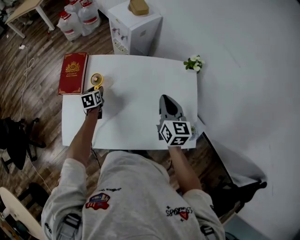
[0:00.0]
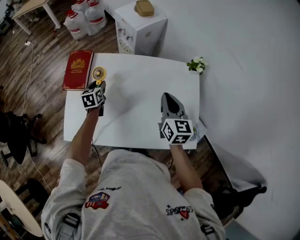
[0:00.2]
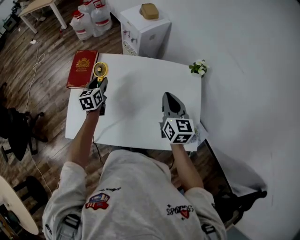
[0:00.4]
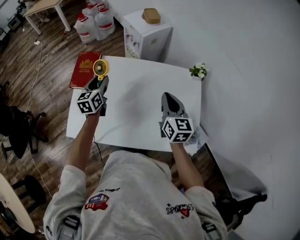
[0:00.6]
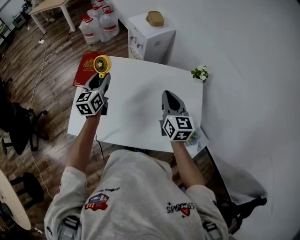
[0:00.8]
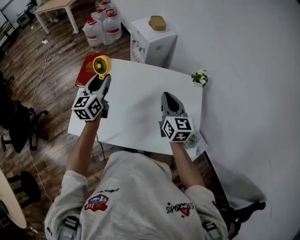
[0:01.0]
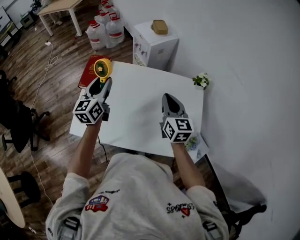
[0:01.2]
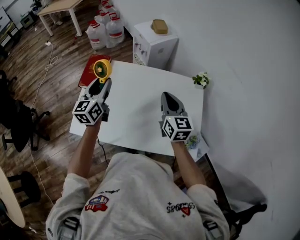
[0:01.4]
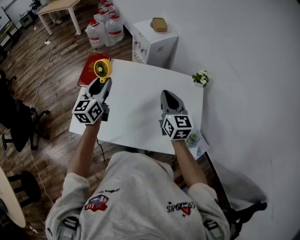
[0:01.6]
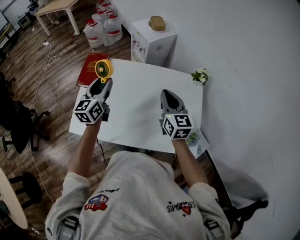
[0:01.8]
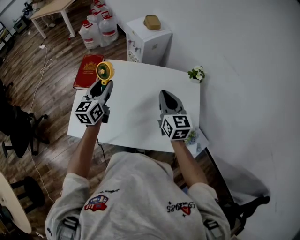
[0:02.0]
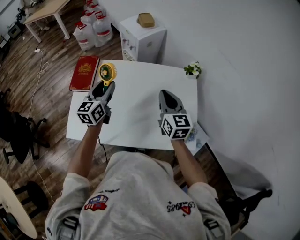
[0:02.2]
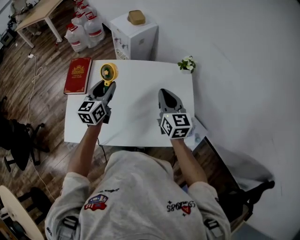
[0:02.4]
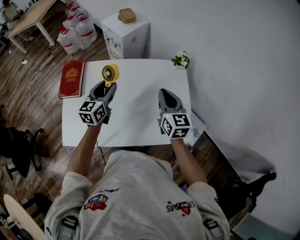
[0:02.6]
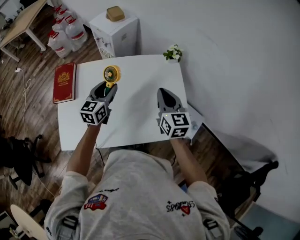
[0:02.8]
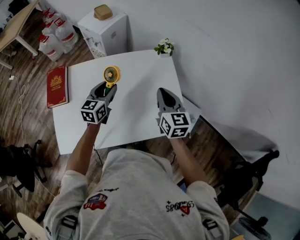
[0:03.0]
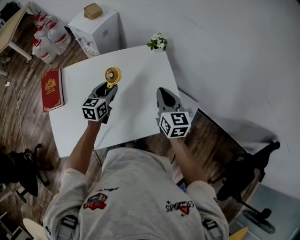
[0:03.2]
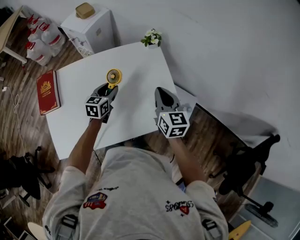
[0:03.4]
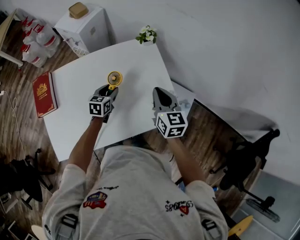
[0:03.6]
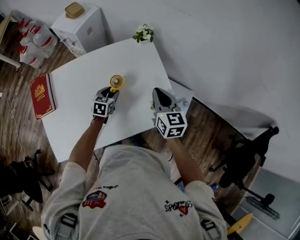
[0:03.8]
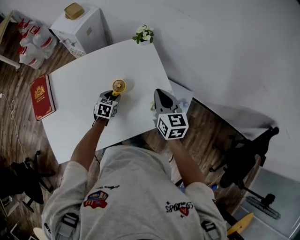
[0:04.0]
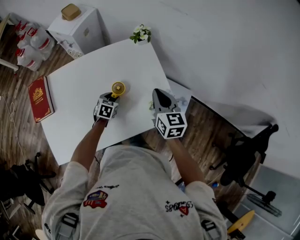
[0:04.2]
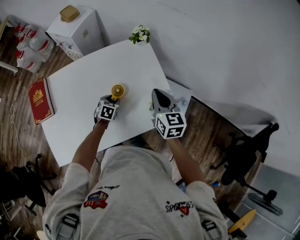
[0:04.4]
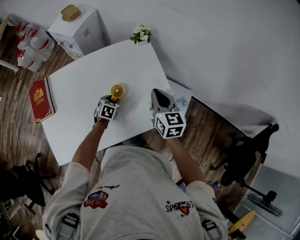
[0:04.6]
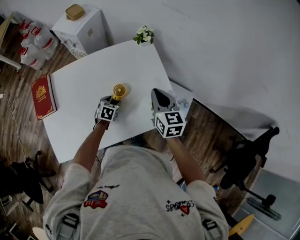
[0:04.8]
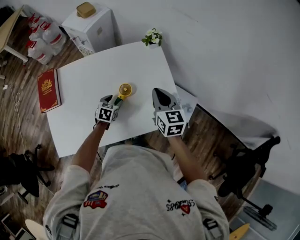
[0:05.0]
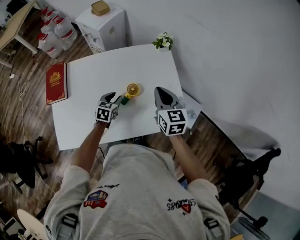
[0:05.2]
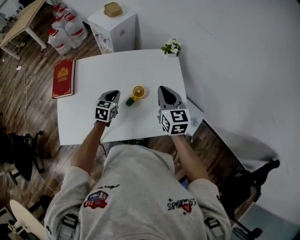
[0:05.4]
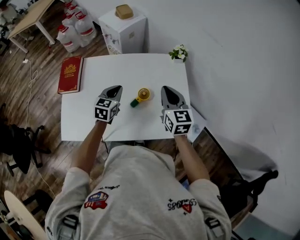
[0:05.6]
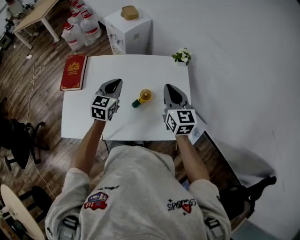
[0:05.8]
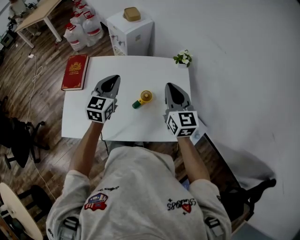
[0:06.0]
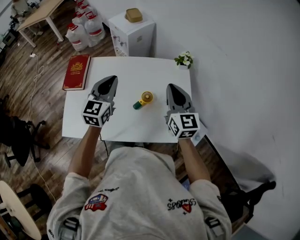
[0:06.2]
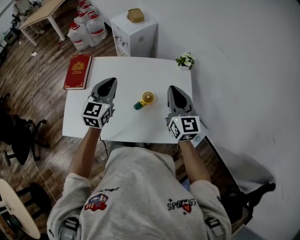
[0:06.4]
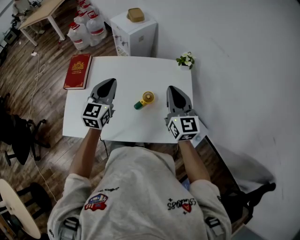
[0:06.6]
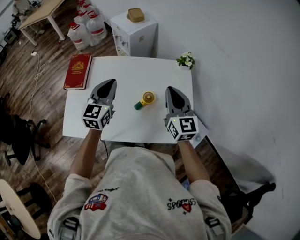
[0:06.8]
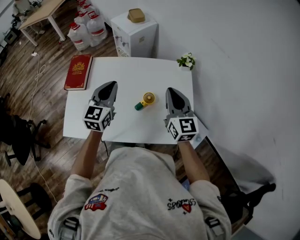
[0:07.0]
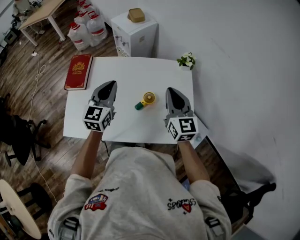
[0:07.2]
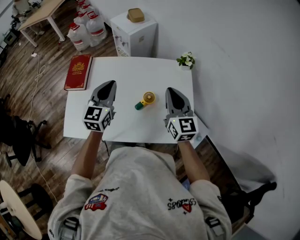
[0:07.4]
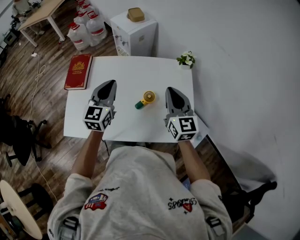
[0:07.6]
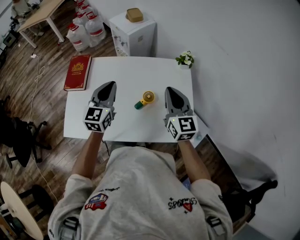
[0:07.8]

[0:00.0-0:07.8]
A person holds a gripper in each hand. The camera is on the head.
0:00.0 to 0:01.6: The right gripper travels upward and to the left by approximately 10 cm; the left gripper is displaced upward by approximately 30 cm, and tilts its fingers about 50 degrees upward.
0:01.6 to 0:03.2: The left gripper shifts by approximately 30 cm, and changes its angle by approximately 40 degrees. The right gripper shifts by roughly 20 cm, and swivels some 30 degrees.
0:03.2 to 0:04.6: The left gripper goes about 20 cm downward and to the right, and points its fingers some 30 degrees further downward; the right gripper ends up about 5 cm from where it was.
0:04.6 to 0:06.2: The left gripper goes roughly 40 cm upward and to the left, angles its fingers upward, by approximately 50 degrees, and closes its fingers, while the right gripper shifts roughly 15 cm upward and to the left, and swivels about 30 degrees.
0:06.2 to 0:07.8: The grippers make only small movements.

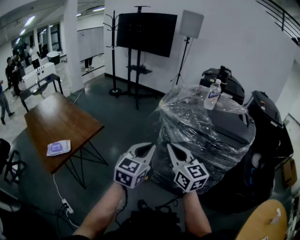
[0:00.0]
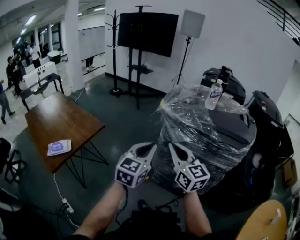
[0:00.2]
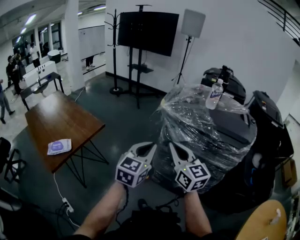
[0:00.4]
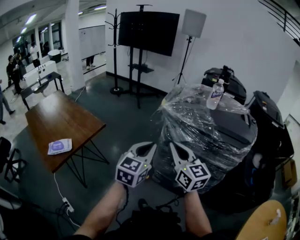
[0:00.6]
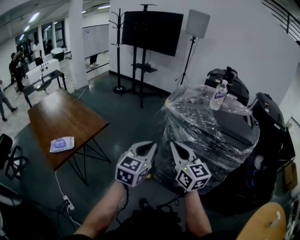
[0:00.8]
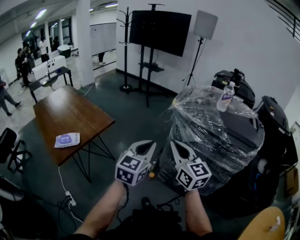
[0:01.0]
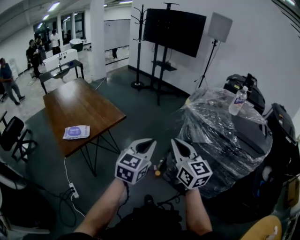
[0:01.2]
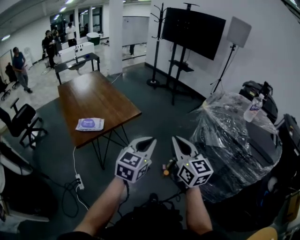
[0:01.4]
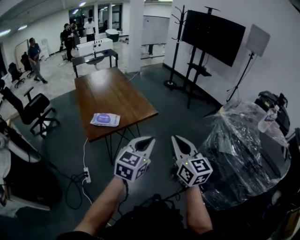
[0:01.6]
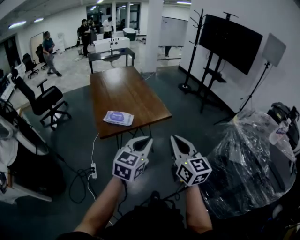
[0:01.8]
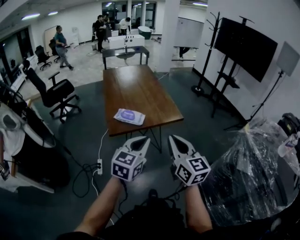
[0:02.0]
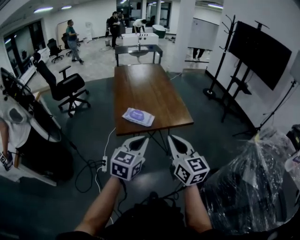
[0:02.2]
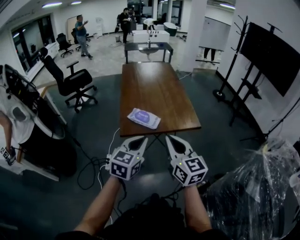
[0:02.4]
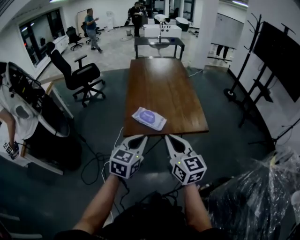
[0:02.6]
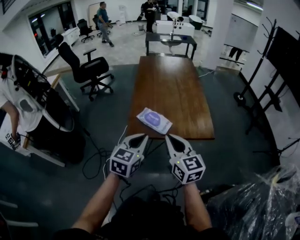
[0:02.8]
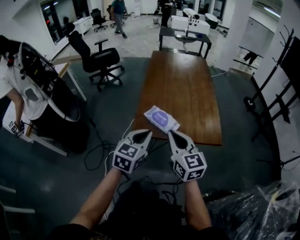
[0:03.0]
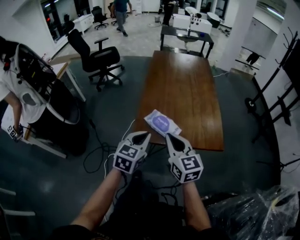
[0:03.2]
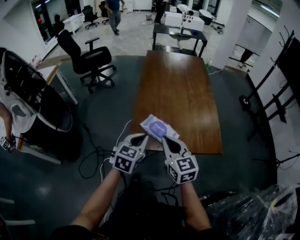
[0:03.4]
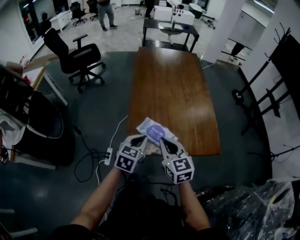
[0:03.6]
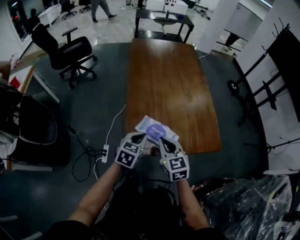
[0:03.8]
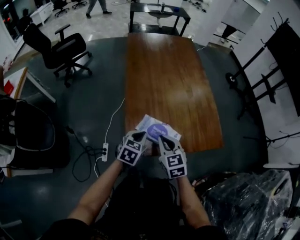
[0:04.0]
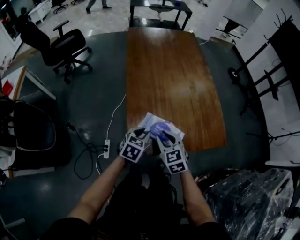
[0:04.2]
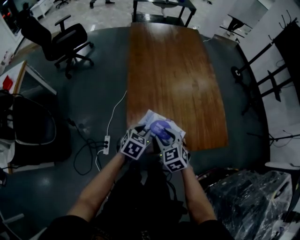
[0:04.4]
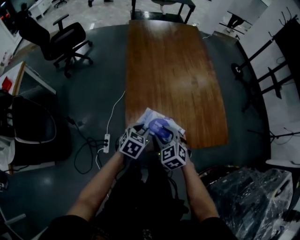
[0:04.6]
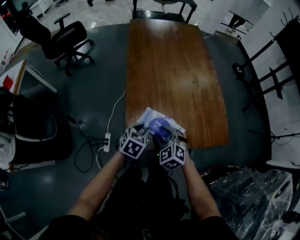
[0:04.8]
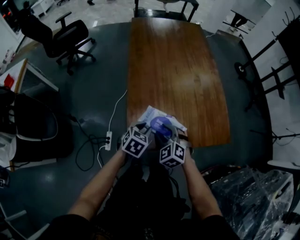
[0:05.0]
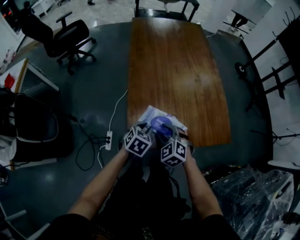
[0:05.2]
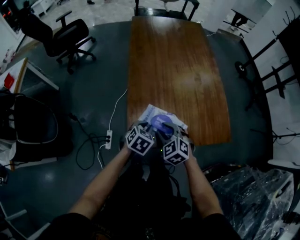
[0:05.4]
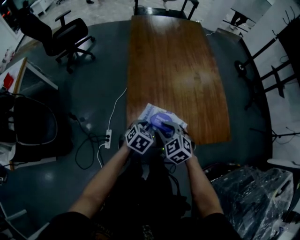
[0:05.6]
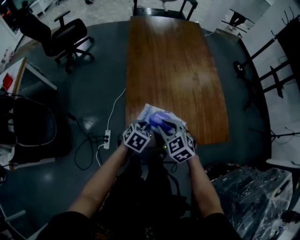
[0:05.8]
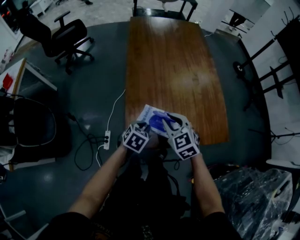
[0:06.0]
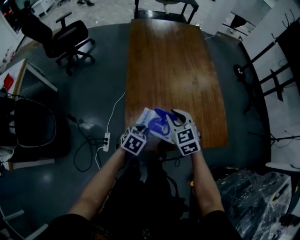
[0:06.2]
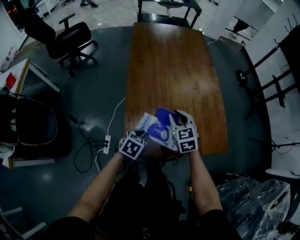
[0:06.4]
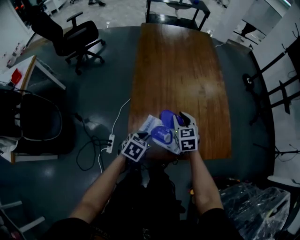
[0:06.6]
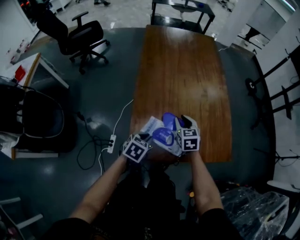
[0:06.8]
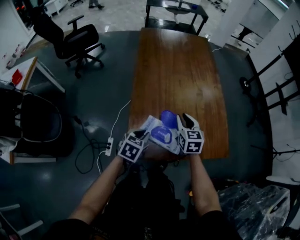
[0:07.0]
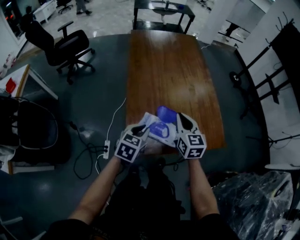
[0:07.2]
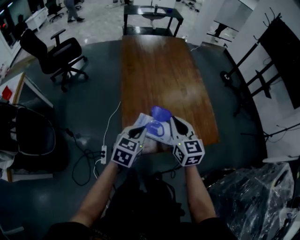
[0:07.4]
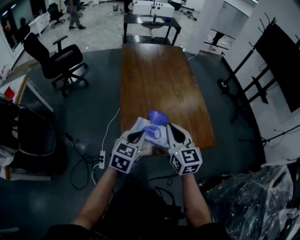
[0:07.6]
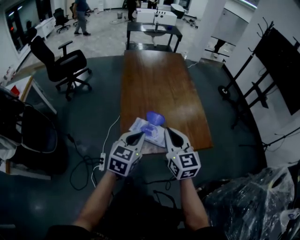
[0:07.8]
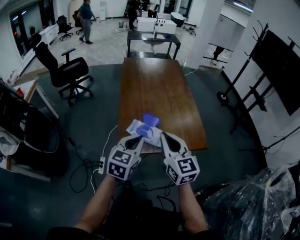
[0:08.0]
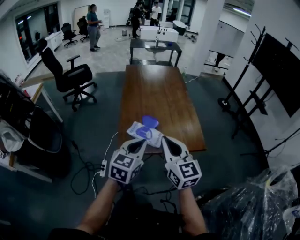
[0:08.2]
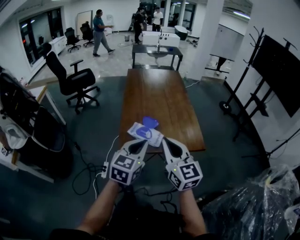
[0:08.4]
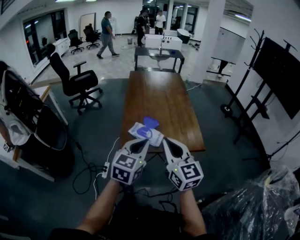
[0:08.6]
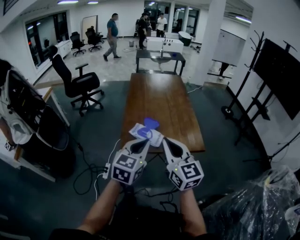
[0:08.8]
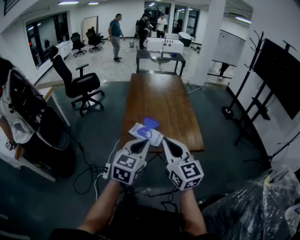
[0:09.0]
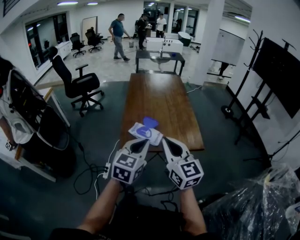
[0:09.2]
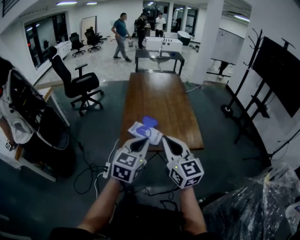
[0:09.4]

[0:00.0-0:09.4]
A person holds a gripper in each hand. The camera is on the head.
0:00.0 to 0:01.6: The right gripper ends up approximately 20 cm from where it was, and changes its angle by approximately 20 degrees, while the left gripper ends up approximately 25 cm from where it was, and turns by roughly 30 degrees.
0:01.6 to 0:03.2: The left gripper changes place by approximately 35 cm, and swivels approximately 40 degrees. Meanwhile the right gripper moves some 40 cm, and turns by some 40 degrees.
0:03.2 to 0:04.8: Both grippers move downward and forward, about 25 cm. The left gripper rotates some 30 degrees, and opens up. Meanwhile the right gripper tilts its fingers some 30 degrees downward, and opens.
0:04.8 to 0:06.2: The right gripper moves forward and upward, approximately 10 cm, and closes up.
0:06.2 to 0:07.8: The right gripper moves upward and backward, some 20 cm, and turns by about 30 degrees; the left gripper is displaced upward by roughly 20 cm, and tips its fingers upward by some 30 degrees.
0:07.8 to 0:09.4: The right gripper moves backward and upward, some 20 cm, while the left gripper is displaced backward, upward and to the right by about 20 cm.

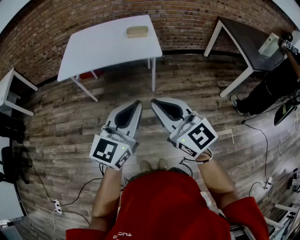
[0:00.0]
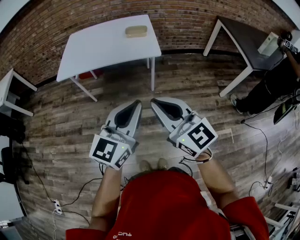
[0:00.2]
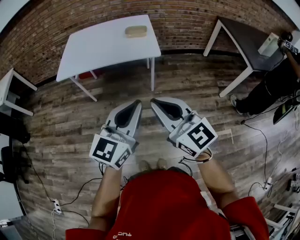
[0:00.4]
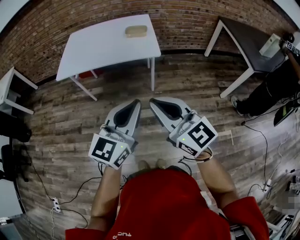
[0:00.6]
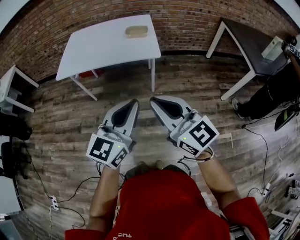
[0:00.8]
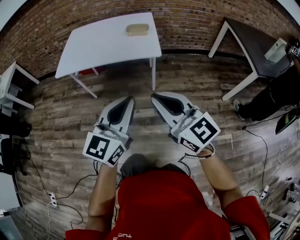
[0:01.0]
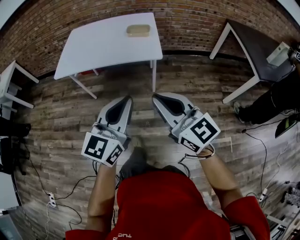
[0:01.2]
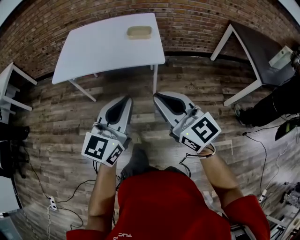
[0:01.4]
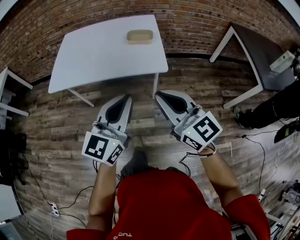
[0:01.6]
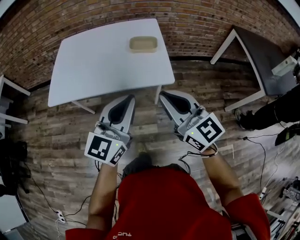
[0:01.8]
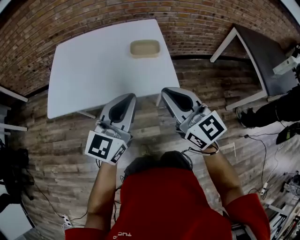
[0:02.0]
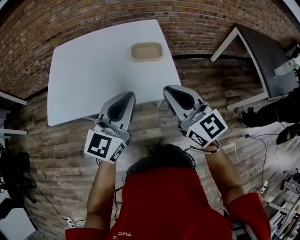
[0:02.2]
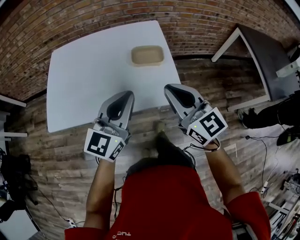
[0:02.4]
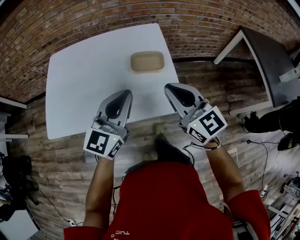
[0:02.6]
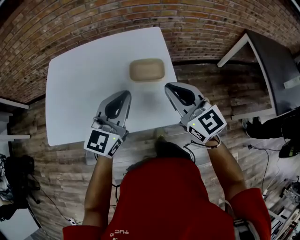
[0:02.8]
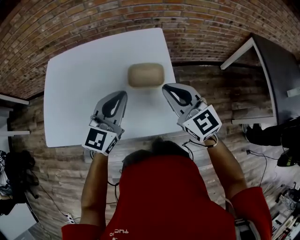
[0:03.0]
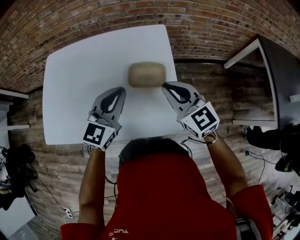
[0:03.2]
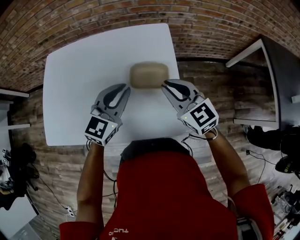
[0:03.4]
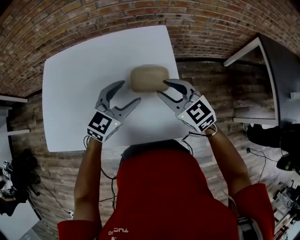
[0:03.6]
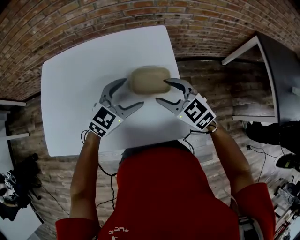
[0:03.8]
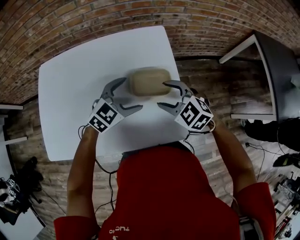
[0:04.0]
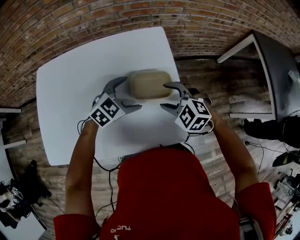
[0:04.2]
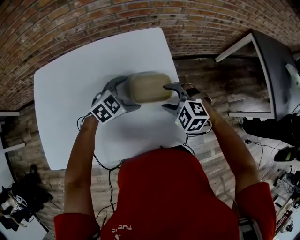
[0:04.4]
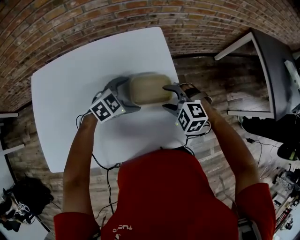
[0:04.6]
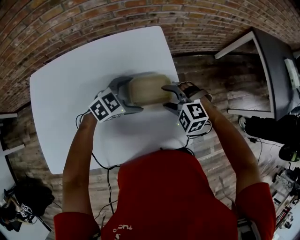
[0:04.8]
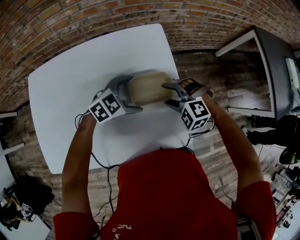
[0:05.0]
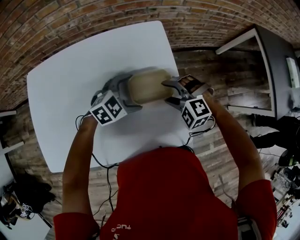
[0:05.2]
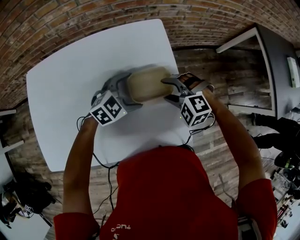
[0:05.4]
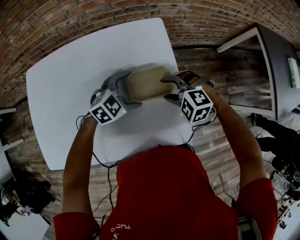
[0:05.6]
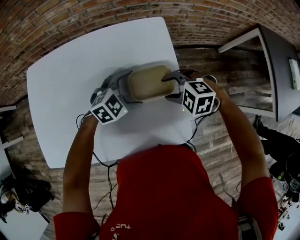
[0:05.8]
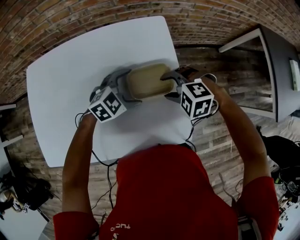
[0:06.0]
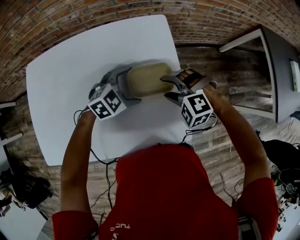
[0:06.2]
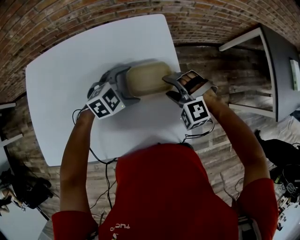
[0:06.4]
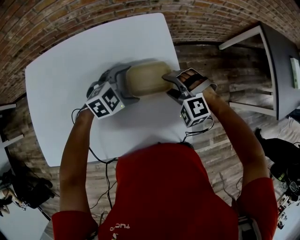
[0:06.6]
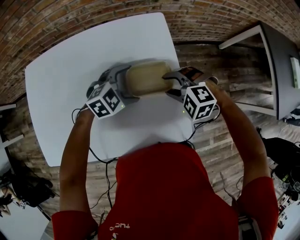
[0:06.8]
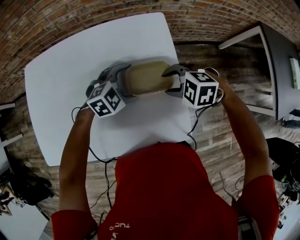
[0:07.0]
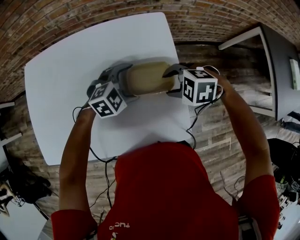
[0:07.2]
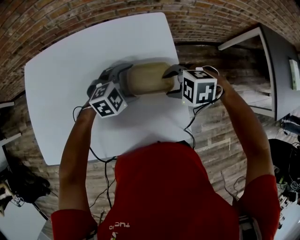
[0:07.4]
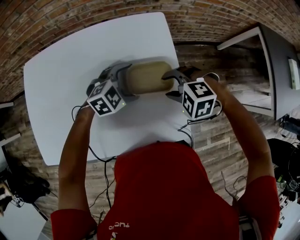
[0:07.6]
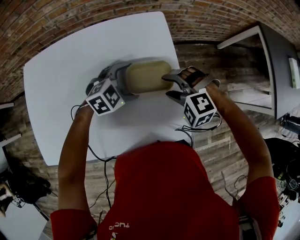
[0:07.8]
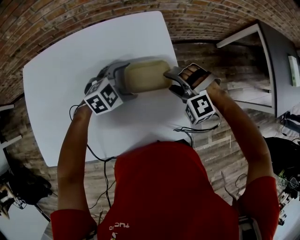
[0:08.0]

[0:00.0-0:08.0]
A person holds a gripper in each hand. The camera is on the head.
0:00.0 to 0:01.6: The two grippers go roughly 20 cm forward.
0:01.6 to 0:03.2: The two grippers travel together, forward, approximately 50 cm.
0:03.2 to 0:04.8: Both grippers travel together downward and forward, roughly 20 cm. The left gripper turns by approximately 50 degrees, and opens; the right gripper points its fingers some 40 degrees further downward, and opens up.
0:04.8 to 0:06.4: The grippers stay close to where they were, moving slightly.
